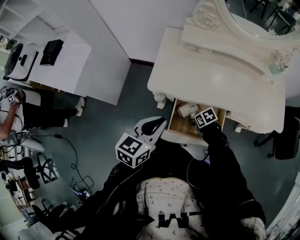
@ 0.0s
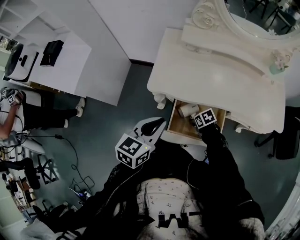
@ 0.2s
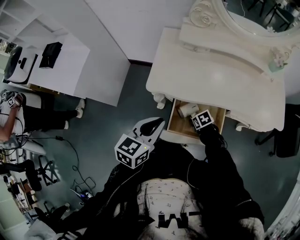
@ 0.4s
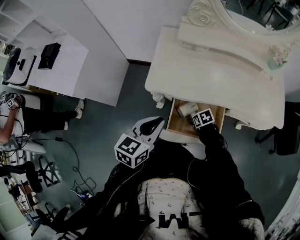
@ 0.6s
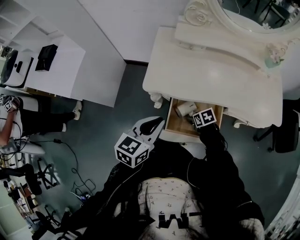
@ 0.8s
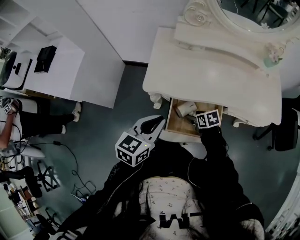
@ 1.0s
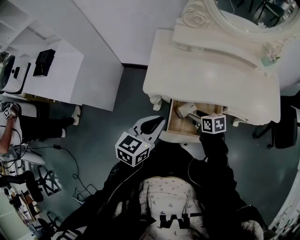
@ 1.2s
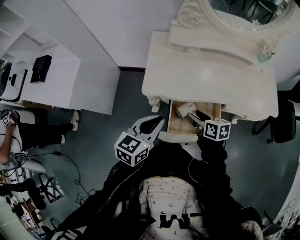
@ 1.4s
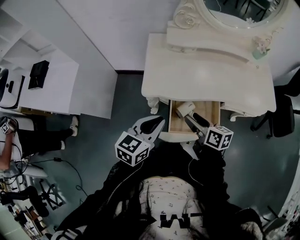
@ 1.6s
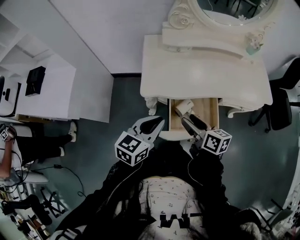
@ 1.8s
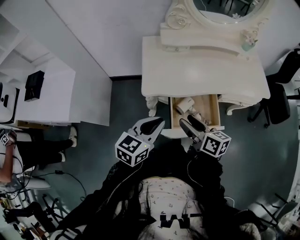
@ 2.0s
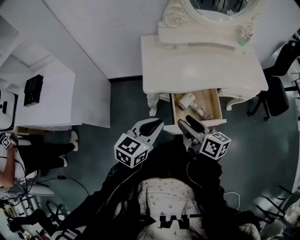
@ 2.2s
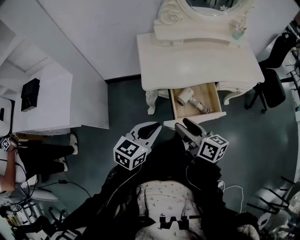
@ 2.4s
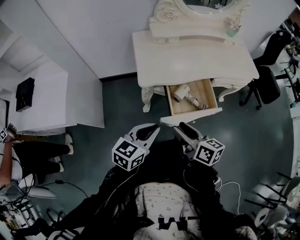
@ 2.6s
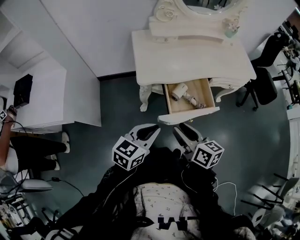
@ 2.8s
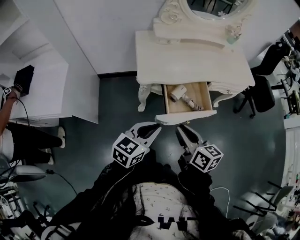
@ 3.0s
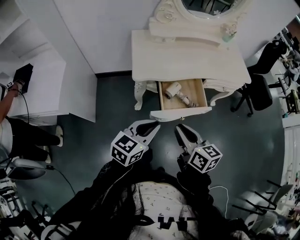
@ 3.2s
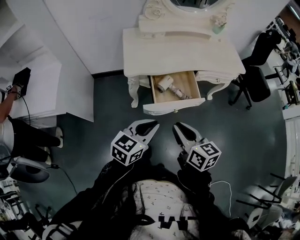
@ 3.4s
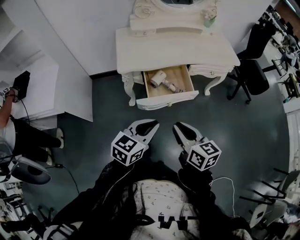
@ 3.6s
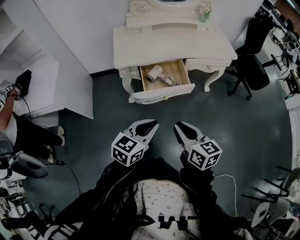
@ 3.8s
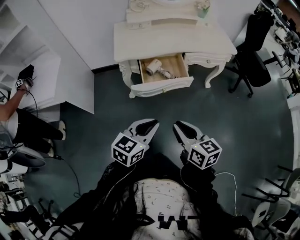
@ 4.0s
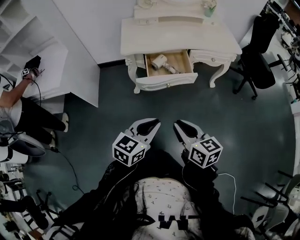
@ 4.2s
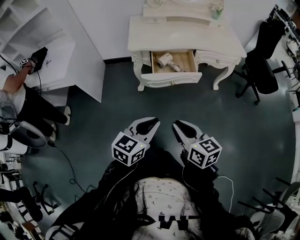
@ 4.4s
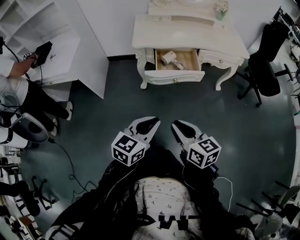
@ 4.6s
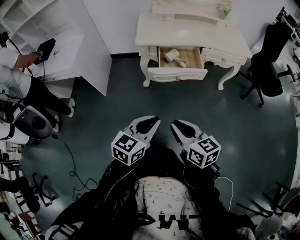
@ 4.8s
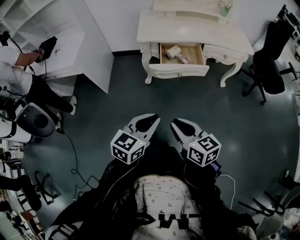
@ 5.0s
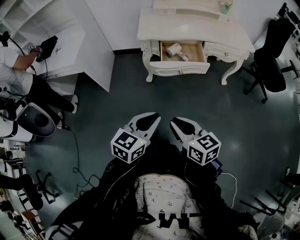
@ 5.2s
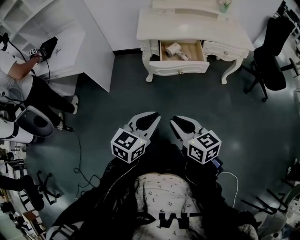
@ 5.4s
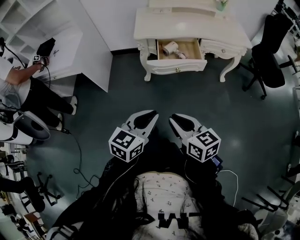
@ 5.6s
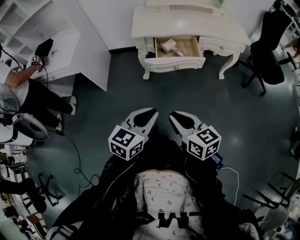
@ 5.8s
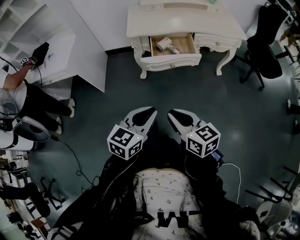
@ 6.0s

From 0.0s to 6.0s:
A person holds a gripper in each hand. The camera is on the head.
From 0.0s to 1.6s: The right gripper shifts some 25 cm upward, and points its fingers roughly 40 degrees further upward.
From 1.6s to 3.0s: The left gripper shifts about 15 cm backward. Meanwhile the right gripper travels backward and upward by about 20 cm, and closes.
From 3.0s to 4.4s: The grippers both shift backward and to the right by roughly 25 cm.
From 4.4s to 6.0s: The right gripper changes place by roughly 5 cm.

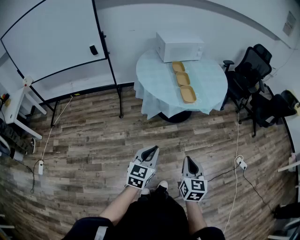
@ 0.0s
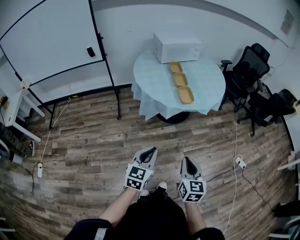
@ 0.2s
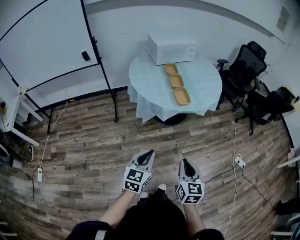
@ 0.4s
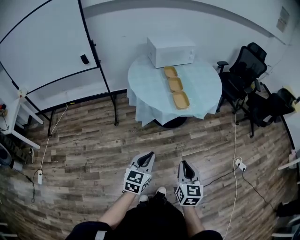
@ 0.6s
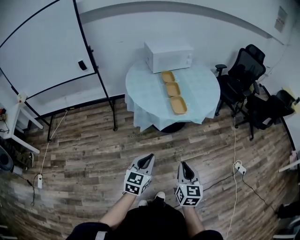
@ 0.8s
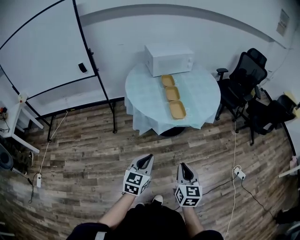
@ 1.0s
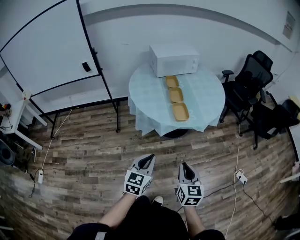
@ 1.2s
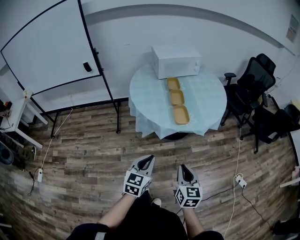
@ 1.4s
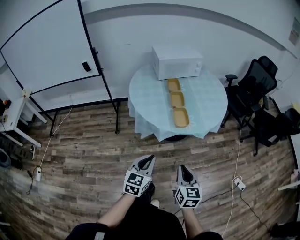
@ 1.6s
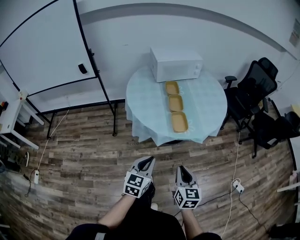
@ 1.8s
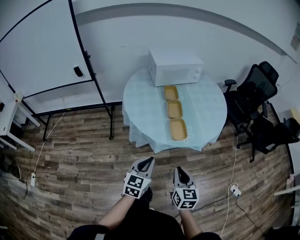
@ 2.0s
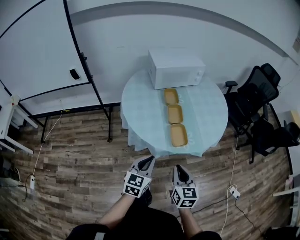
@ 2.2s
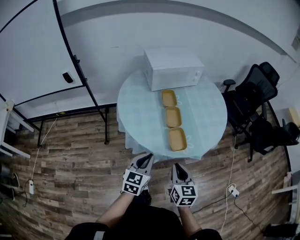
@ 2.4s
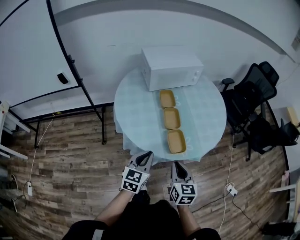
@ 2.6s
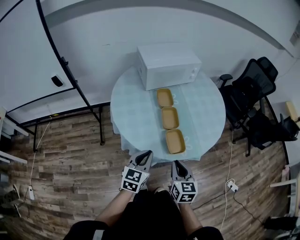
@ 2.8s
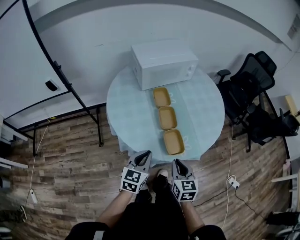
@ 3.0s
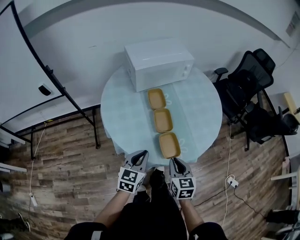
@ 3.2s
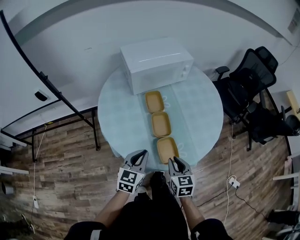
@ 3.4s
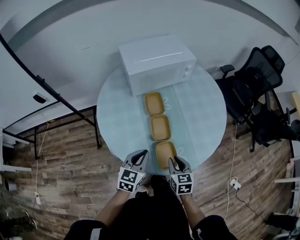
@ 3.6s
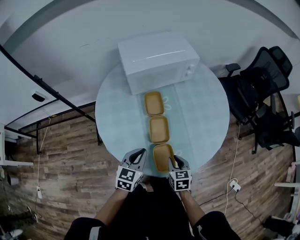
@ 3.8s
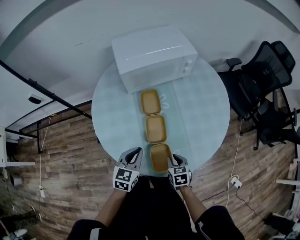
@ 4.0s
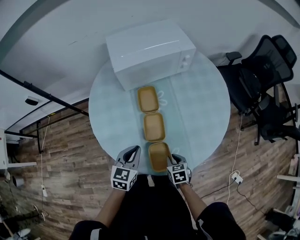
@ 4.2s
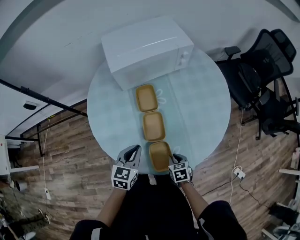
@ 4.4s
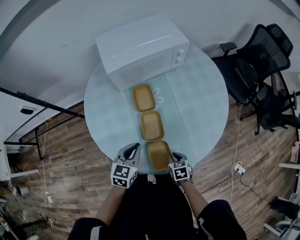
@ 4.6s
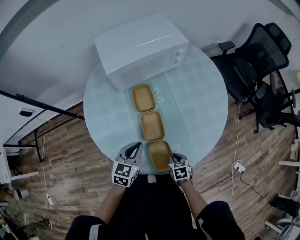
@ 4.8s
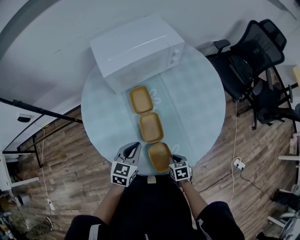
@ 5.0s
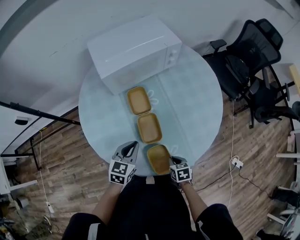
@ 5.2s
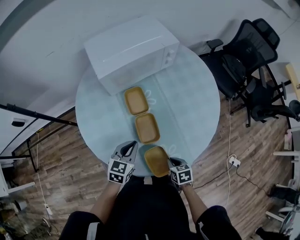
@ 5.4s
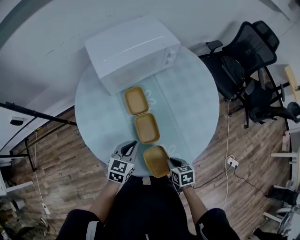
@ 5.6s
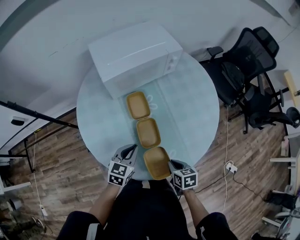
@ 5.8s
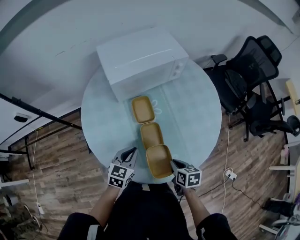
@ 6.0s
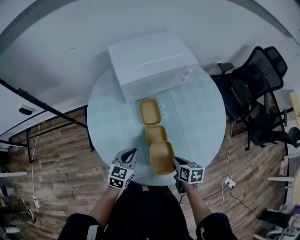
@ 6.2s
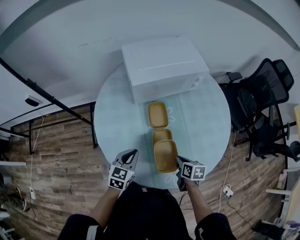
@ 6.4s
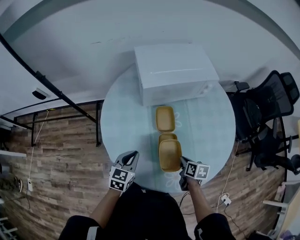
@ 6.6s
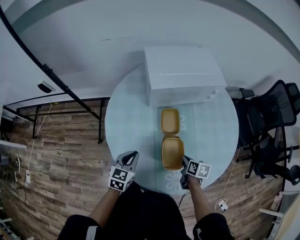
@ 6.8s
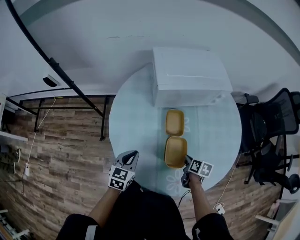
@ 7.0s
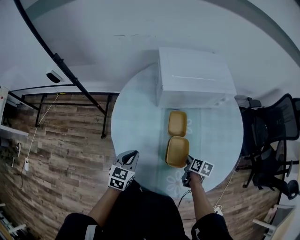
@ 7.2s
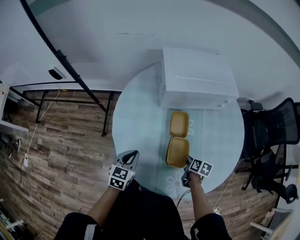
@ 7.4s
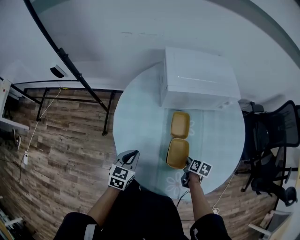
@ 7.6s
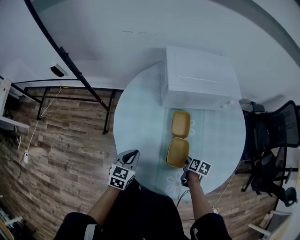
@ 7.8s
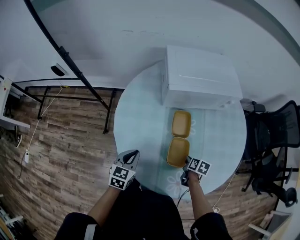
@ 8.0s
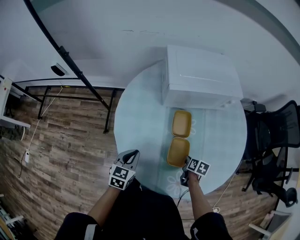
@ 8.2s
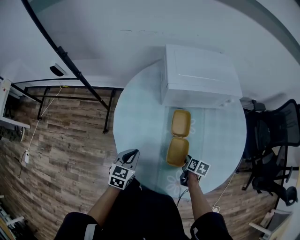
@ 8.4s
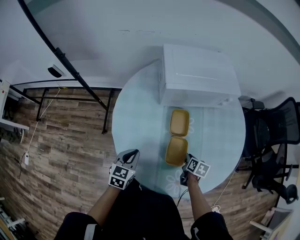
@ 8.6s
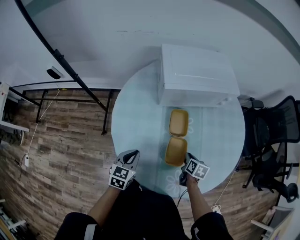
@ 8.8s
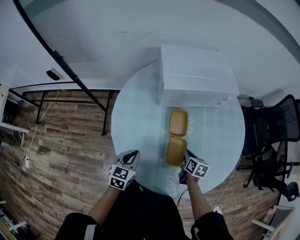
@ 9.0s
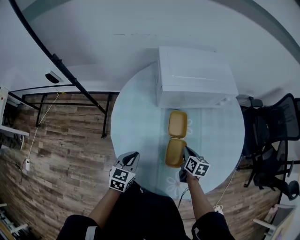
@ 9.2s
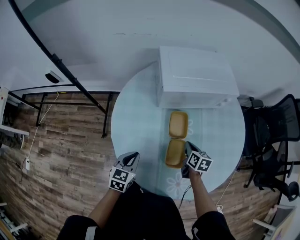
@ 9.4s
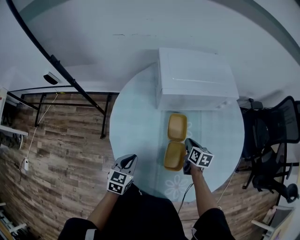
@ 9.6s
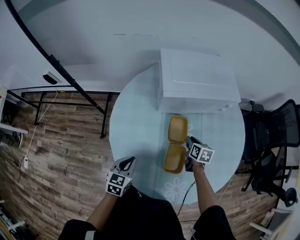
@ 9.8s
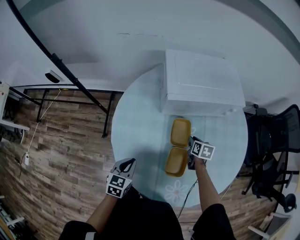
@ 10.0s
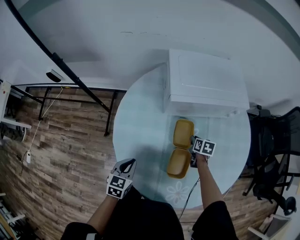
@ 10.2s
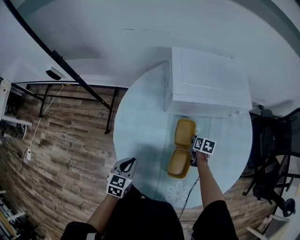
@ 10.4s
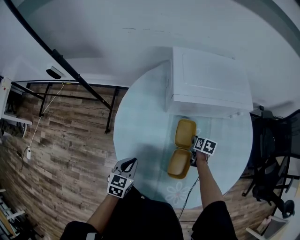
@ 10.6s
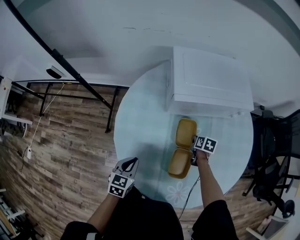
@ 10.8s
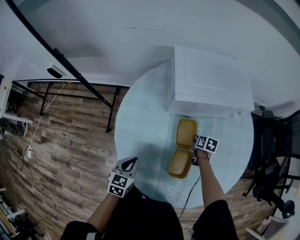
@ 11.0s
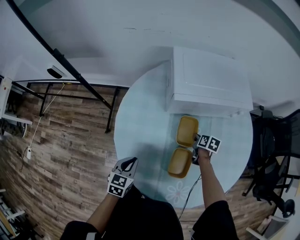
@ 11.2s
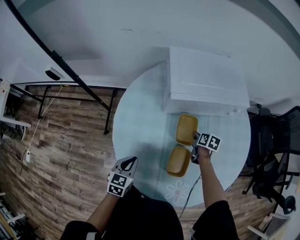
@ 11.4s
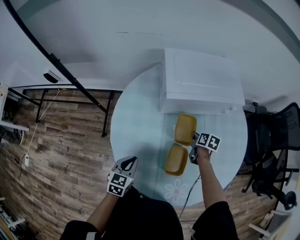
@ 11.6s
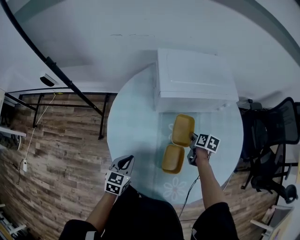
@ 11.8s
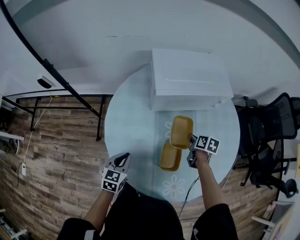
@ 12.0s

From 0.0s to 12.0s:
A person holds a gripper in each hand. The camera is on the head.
From 0.0s to 1.6s: Both grippers move forward, roughly 15 cm.
From 1.6s to 3.0s: Both grippers move forward, approximately 30 cm.
From 3.0s to 4.4s: The left gripper goes some 15 cm forward, while the right gripper moves downward, forward and to the right, approximately 25 cm, and angles its fingers downward, by approximately 30 degrees.
From 4.4s to 6.0s: The right gripper travels upward by roughly 10 cm, and turns by about 20 degrees.
From 6.0s to 7.6s: The left gripper heads to the left, covering roughly 10 cm, and swivels some 20 degrees; the right gripper heads forward and downward, covering roughly 15 cm.
From 7.6s to 9.0s: The right gripper ends up about 5 cm from where it was.
From 9.0s to 10.4s: The right gripper goes roughly 15 cm forward and downward.
From 10.4s to 12.0s: The right gripper travels upward by roughly 10 cm.

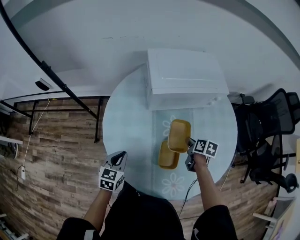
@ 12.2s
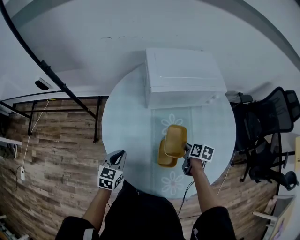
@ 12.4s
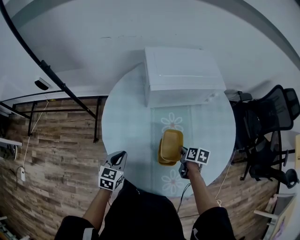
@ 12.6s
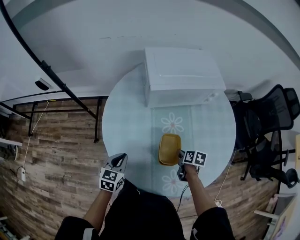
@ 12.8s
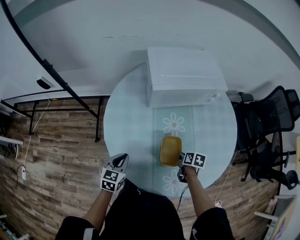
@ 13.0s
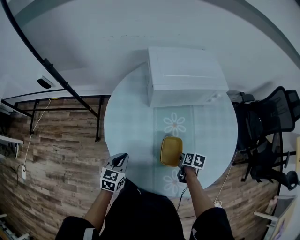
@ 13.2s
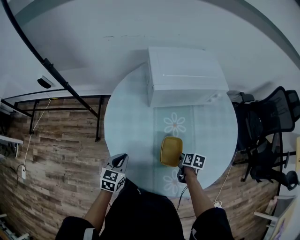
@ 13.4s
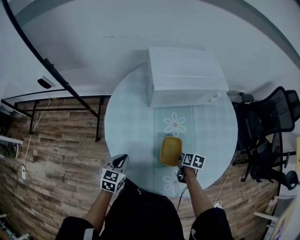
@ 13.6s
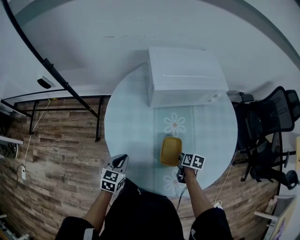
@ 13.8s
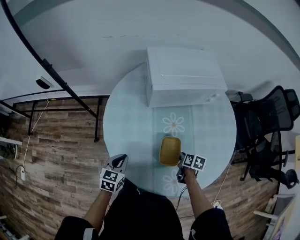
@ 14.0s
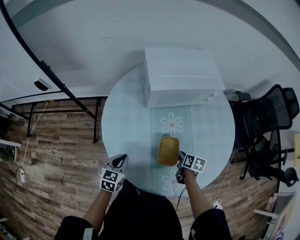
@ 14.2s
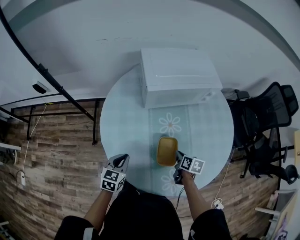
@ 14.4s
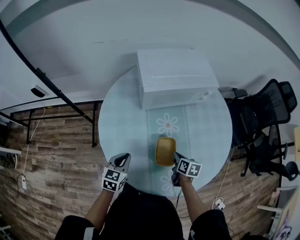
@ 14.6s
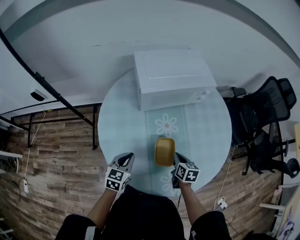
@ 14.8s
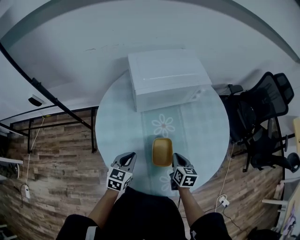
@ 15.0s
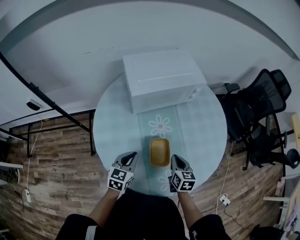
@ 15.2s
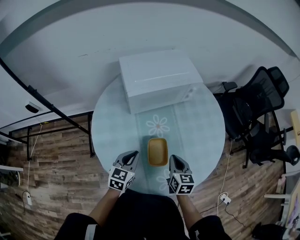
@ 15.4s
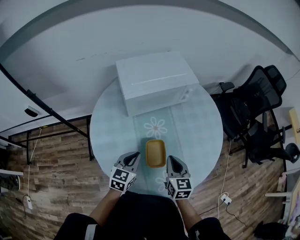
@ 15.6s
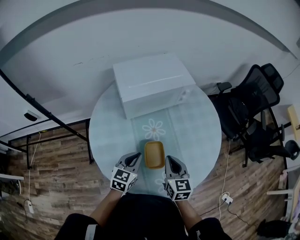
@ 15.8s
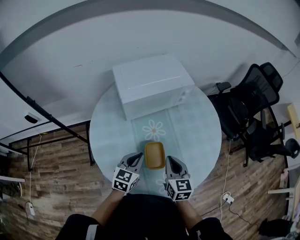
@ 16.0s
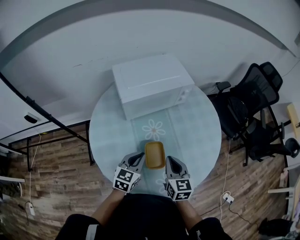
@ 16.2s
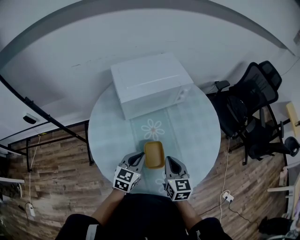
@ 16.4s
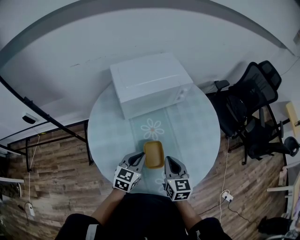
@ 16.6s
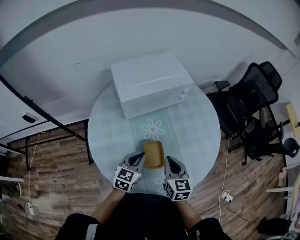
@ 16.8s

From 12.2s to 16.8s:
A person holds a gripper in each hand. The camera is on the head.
From 12.2s to 13.8s: The right gripper heads backward and downward, covering approximately 15 cm.
From 13.8s to 15.2s: The right gripper heads upward, covering some 10 cm, and changes its angle by some 30 degrees. The left gripper moves to the right, roughly 10 cm.
From 15.2s to 16.8s: The right gripper goes approximately 10 cm upward; the left gripper heads to the right, covering approximately 5 cm.

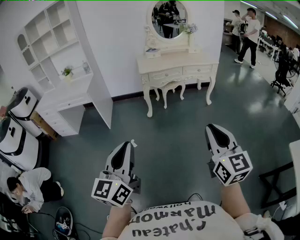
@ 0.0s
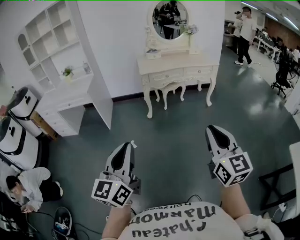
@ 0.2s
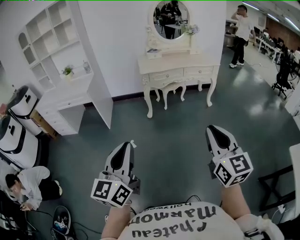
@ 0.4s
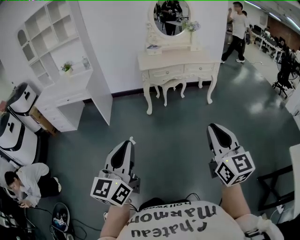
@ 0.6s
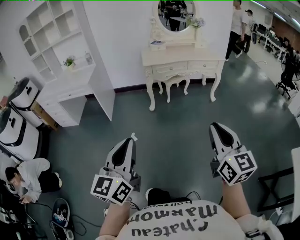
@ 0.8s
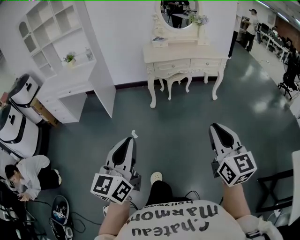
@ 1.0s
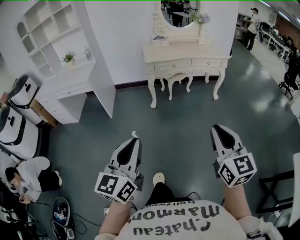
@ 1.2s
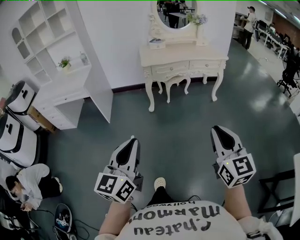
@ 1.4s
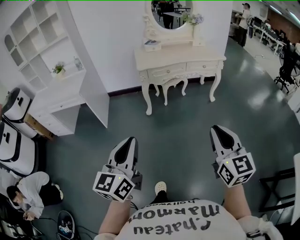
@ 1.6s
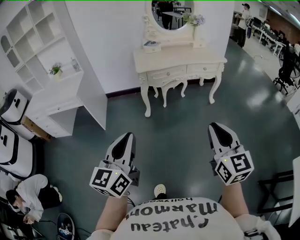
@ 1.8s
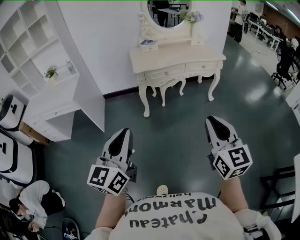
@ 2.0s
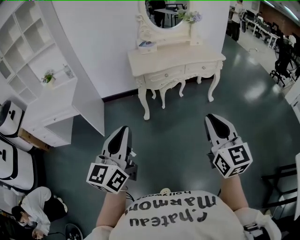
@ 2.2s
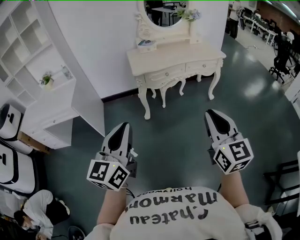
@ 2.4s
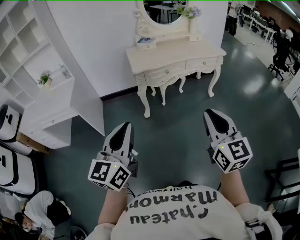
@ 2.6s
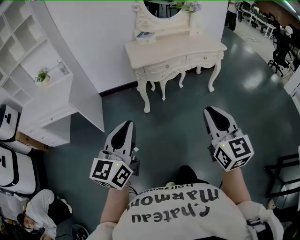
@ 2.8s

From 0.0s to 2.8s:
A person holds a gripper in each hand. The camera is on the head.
From 0.0s to 1.4s: The grippers both shift forward by about 10 cm.
From 1.4s to 2.8s: The grippers both shift forward and to the left by about 25 cm.
